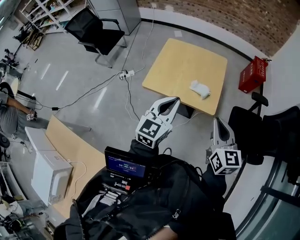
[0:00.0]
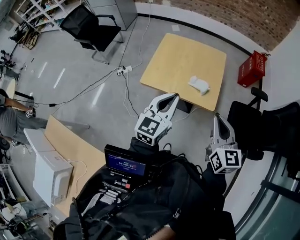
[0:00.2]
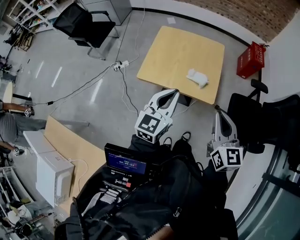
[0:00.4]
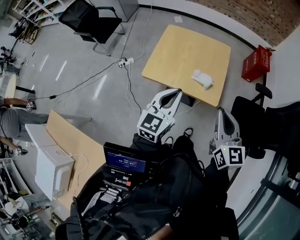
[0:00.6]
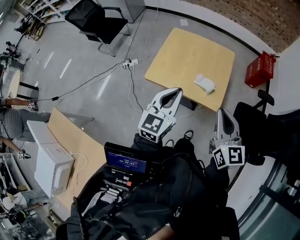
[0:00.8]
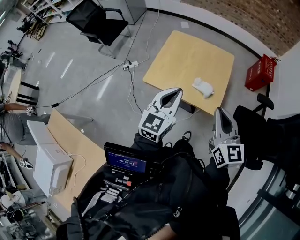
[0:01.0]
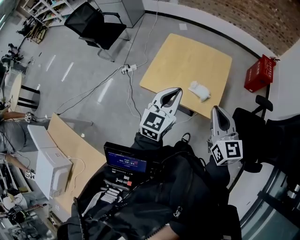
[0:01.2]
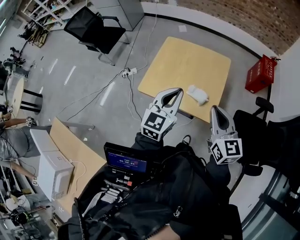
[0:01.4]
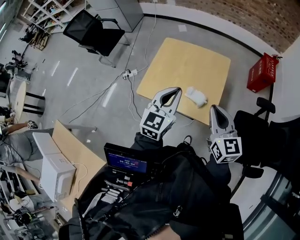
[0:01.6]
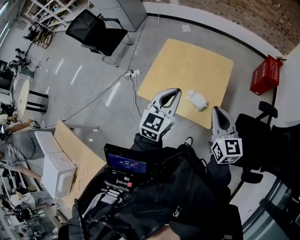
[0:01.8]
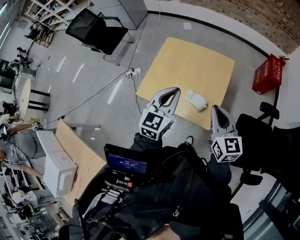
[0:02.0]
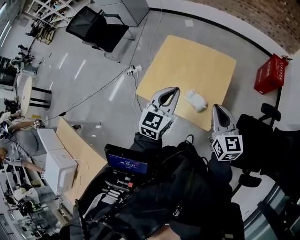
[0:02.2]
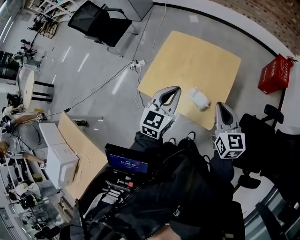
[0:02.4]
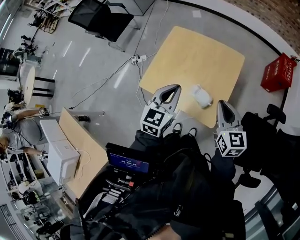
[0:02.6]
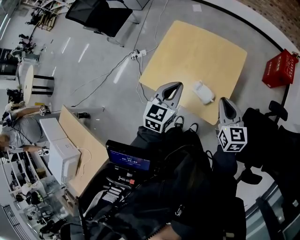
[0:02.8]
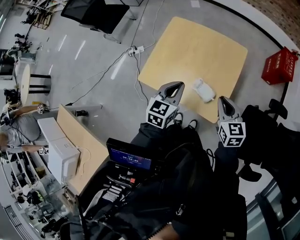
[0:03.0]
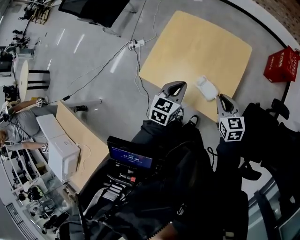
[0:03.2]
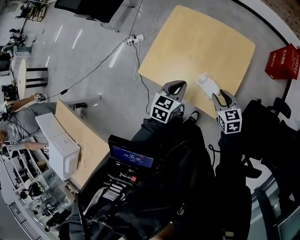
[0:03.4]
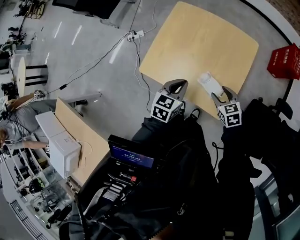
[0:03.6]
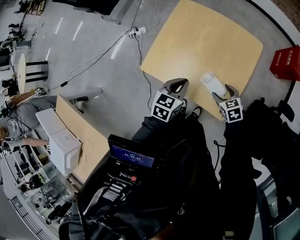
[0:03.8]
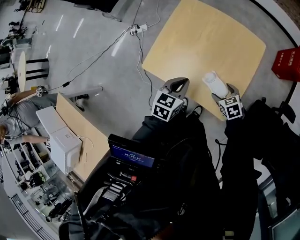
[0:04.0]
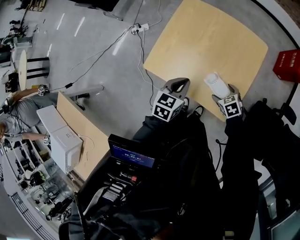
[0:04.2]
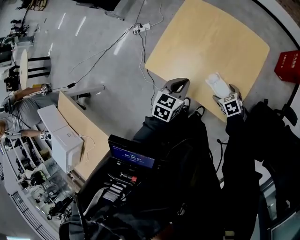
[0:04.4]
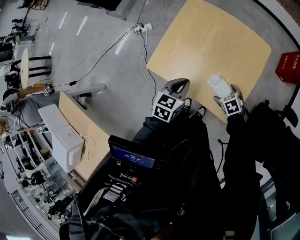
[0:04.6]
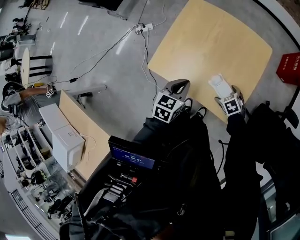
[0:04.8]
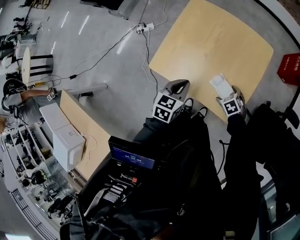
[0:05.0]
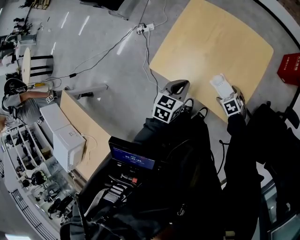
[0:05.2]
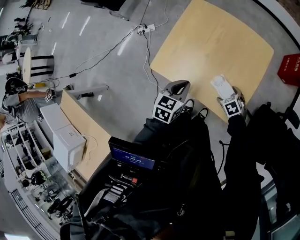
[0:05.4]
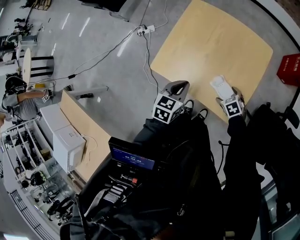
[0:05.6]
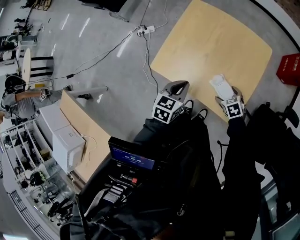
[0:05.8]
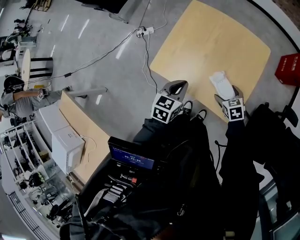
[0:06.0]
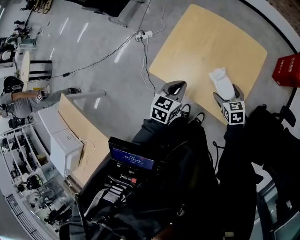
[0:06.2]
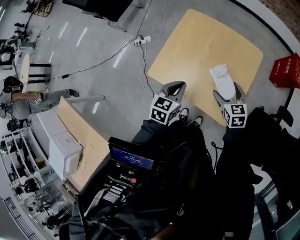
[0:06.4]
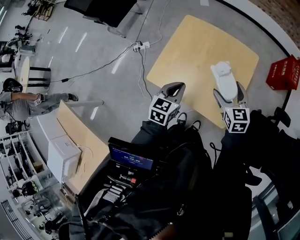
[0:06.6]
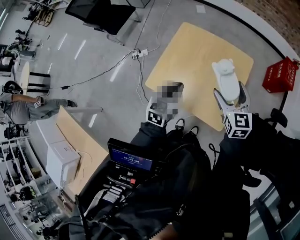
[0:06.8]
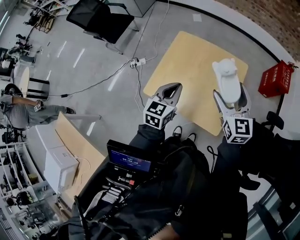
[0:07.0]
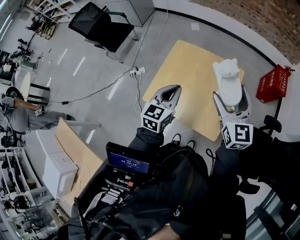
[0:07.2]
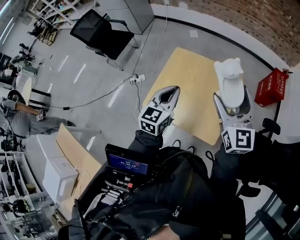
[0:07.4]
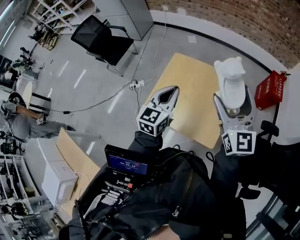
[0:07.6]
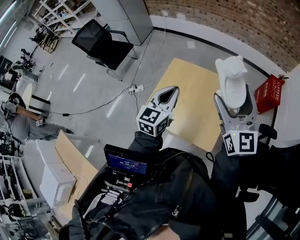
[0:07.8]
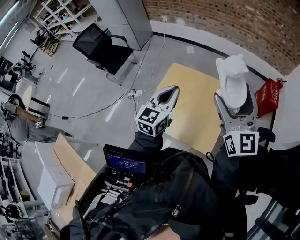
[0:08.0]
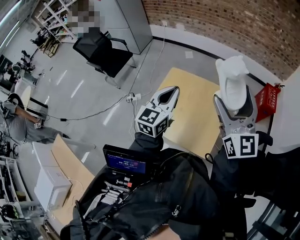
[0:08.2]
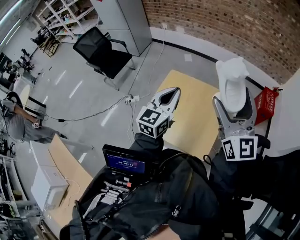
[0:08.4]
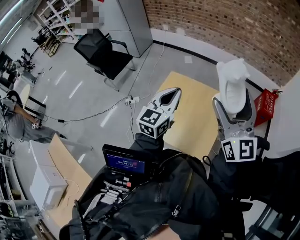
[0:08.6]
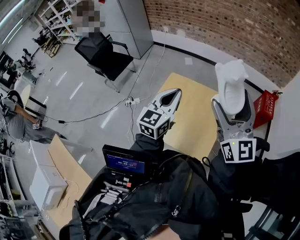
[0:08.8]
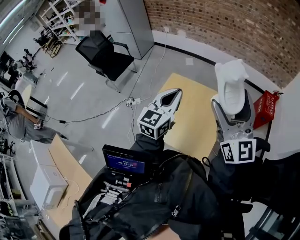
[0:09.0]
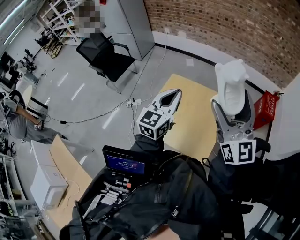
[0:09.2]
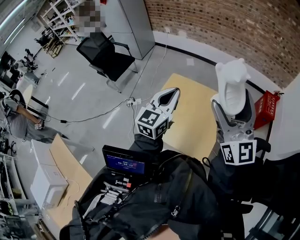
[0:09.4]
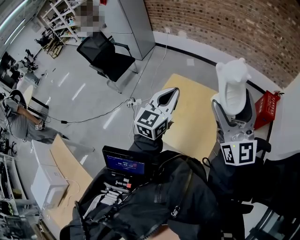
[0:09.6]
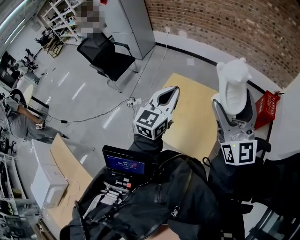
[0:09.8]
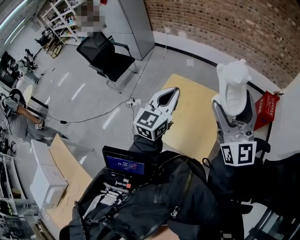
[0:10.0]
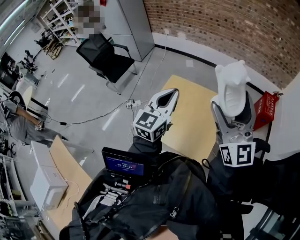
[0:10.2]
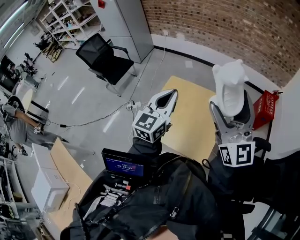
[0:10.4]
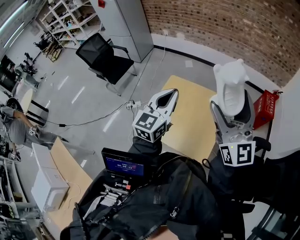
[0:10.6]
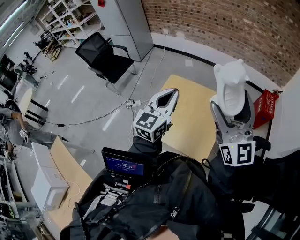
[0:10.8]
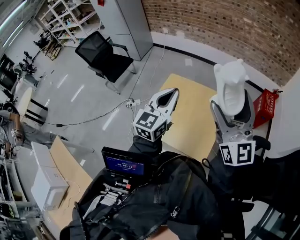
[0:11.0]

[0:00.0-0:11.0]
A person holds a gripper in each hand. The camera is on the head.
0.0 to 1.6 s: The left gripper heads forward and to the right, covering about 15 cm. The right gripper travels forward by approximately 15 cm.
1.6 to 3.2 s: Both grippers move downward and forward, approximately 20 cm. The right gripper turns by about 30 degrees. The left gripper changes its angle by some 20 degrees.
3.2 to 4.8 s: The right gripper heads downward, covering approximately 20 cm, tilts its fingers about 40 degrees downward, and opens its fingers. Meanwhile the left gripper heads downward and to the left, covering approximately 10 cm.
4.8 to 6.2 s: The right gripper is displaced upward by roughly 10 cm, and swivels roughly 30 degrees.
6.2 to 7.8 s: The left gripper is displaced upward by approximately 25 cm, and changes its angle by approximately 30 degrees. The right gripper heads upward, covering about 40 cm, and points its fingers roughly 60 degrees further upward.
7.8 to 9.4 s: Both grippers move upward, approximately 5 cm.
9.4 to 11.0 s: The grippers make only small movements.

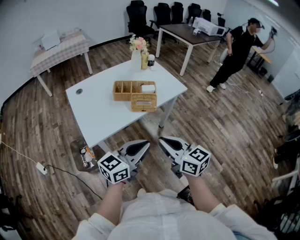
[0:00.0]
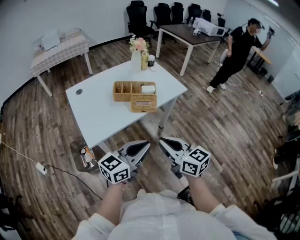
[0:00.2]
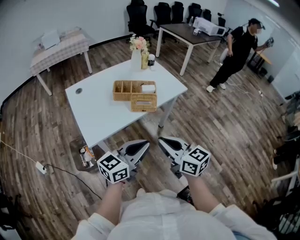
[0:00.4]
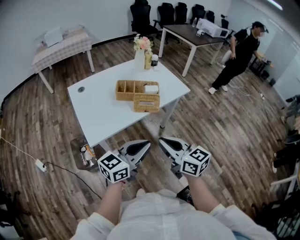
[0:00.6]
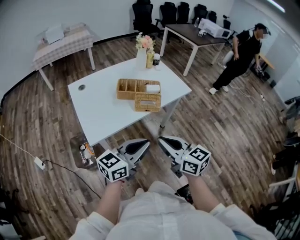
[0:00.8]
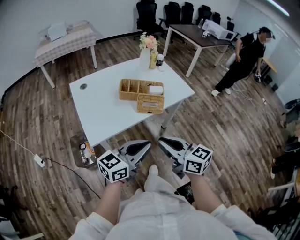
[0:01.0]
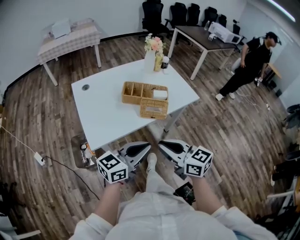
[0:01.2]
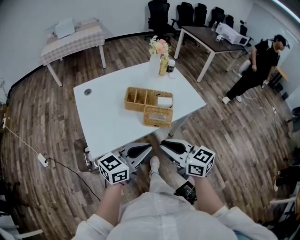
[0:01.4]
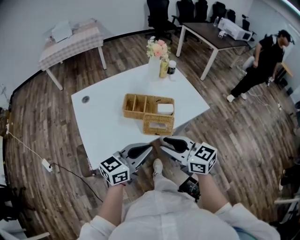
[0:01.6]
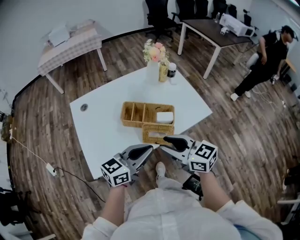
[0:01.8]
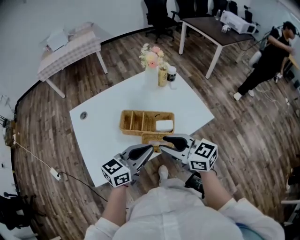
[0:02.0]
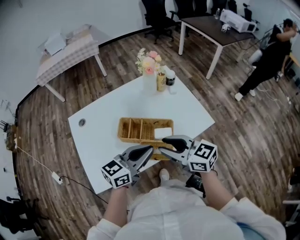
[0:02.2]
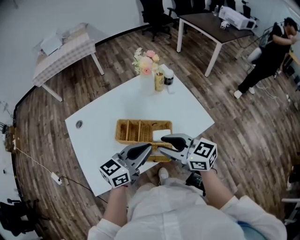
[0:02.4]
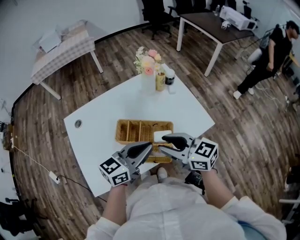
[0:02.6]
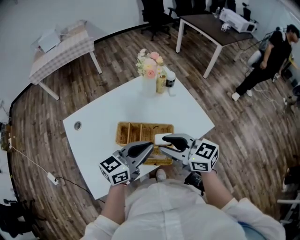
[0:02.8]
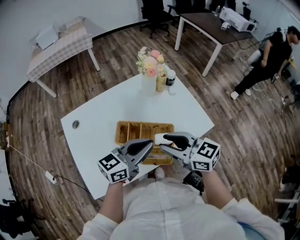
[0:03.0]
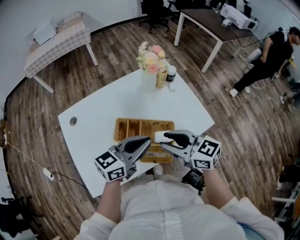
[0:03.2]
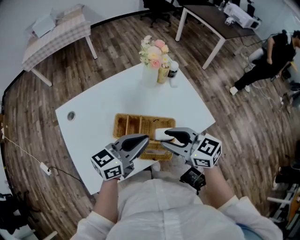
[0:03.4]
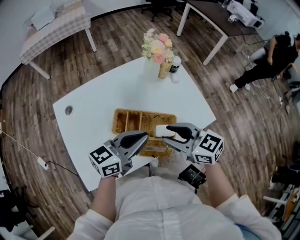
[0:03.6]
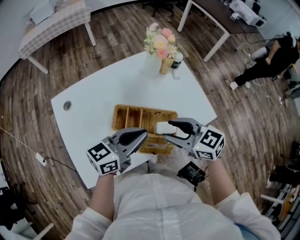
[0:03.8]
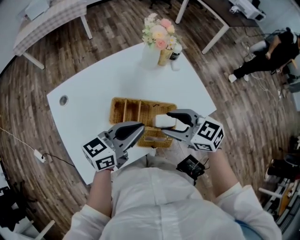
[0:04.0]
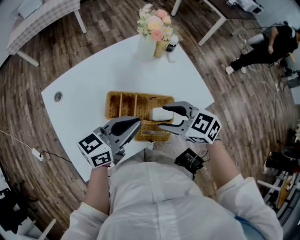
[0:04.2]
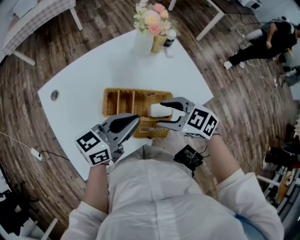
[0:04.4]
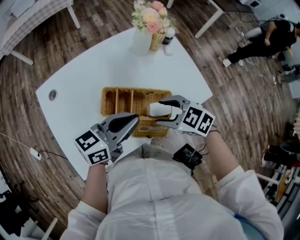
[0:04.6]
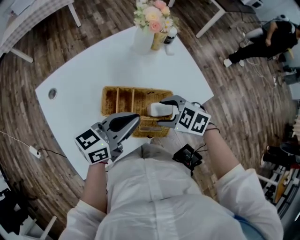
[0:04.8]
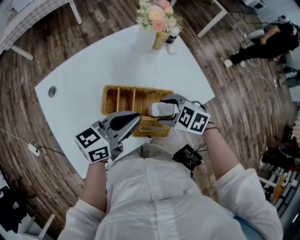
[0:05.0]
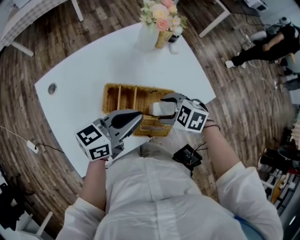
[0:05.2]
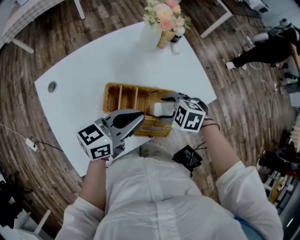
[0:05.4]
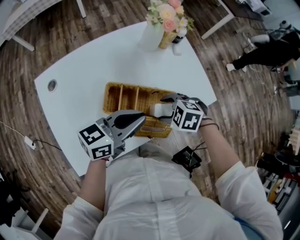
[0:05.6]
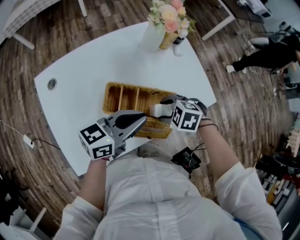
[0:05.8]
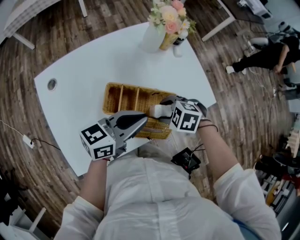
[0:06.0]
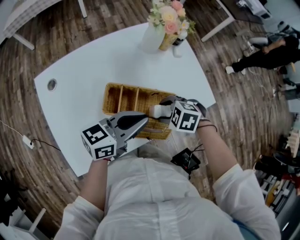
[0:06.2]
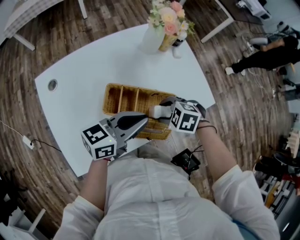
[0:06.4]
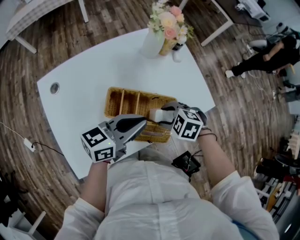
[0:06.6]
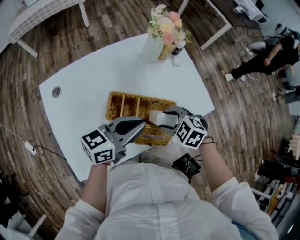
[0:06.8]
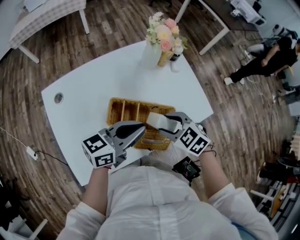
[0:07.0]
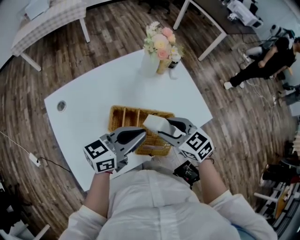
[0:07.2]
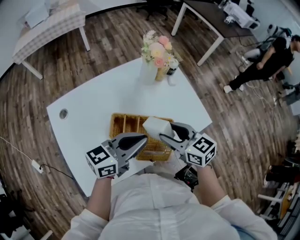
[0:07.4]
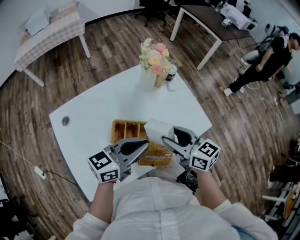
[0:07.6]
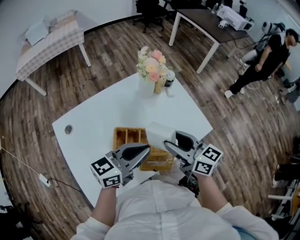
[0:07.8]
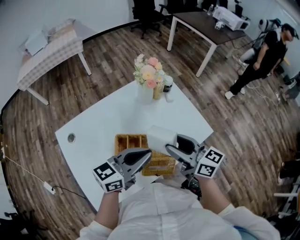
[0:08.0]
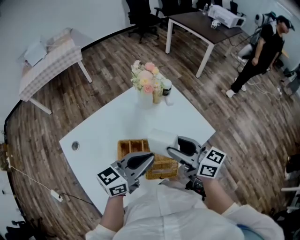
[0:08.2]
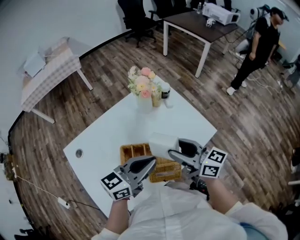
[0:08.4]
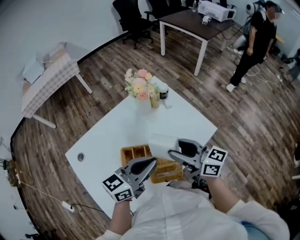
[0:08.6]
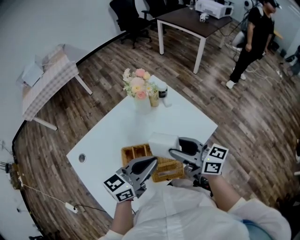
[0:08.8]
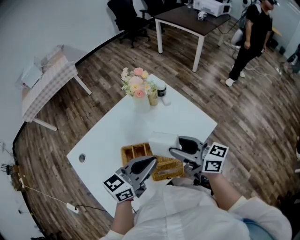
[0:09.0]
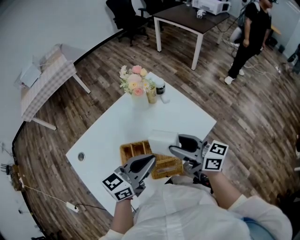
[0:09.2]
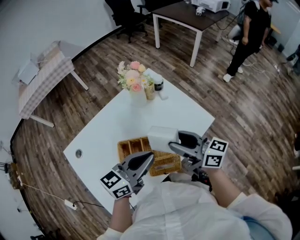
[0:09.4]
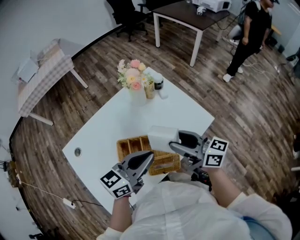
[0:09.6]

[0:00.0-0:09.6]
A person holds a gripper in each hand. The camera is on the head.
0.0 to 1.6 s: The two grippers go some 15 cm forward. The right gripper changes its angle by some 20 degrees, and opens its fingers.
1.6 to 3.2 s: Both grippers travel together forward, approximately 20 cm.
3.2 to 4.8 s: The right gripper heads downward, covering about 15 cm, tilts its fingers approximately 40 degrees downward, and opens; the left gripper moves approximately 5 cm.
4.8 to 6.4 s: The right gripper moves approximately 5 cm.
6.4 to 8.0 s: The left gripper shifts some 5 cm upward. The right gripper is displaced upward by roughly 20 cm, and points its fingers about 70 degrees further upward.
8.0 to 9.6 s: The grippers stay close to where they were, moving slightly.

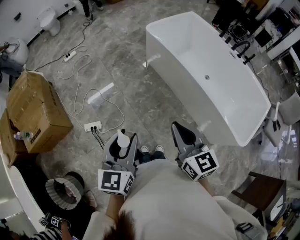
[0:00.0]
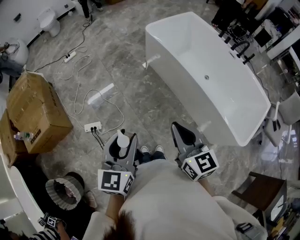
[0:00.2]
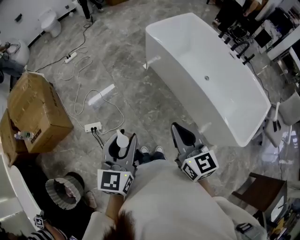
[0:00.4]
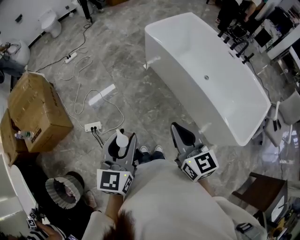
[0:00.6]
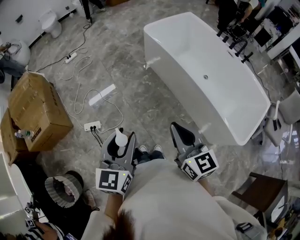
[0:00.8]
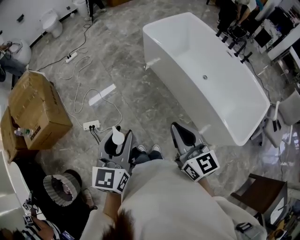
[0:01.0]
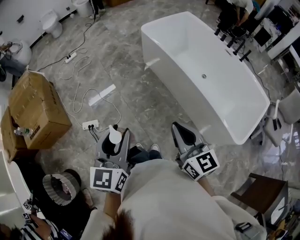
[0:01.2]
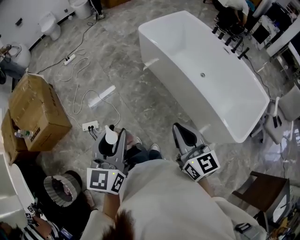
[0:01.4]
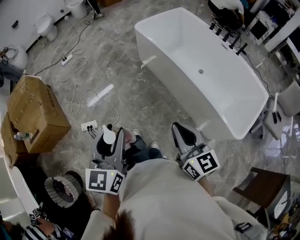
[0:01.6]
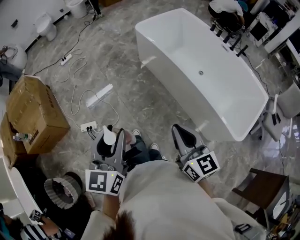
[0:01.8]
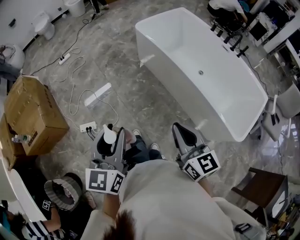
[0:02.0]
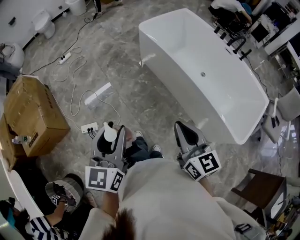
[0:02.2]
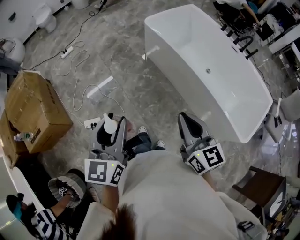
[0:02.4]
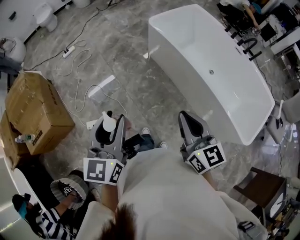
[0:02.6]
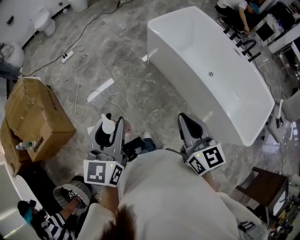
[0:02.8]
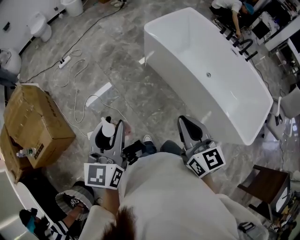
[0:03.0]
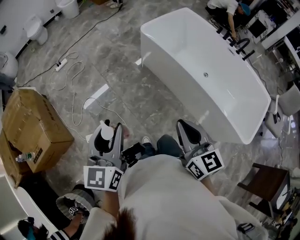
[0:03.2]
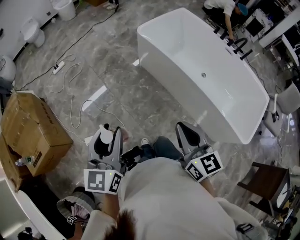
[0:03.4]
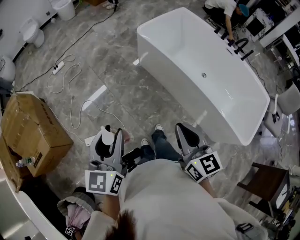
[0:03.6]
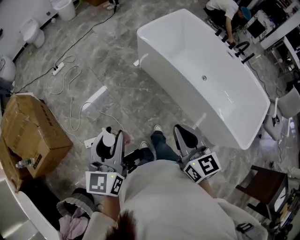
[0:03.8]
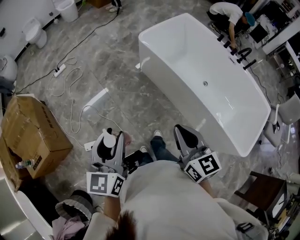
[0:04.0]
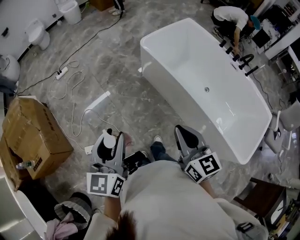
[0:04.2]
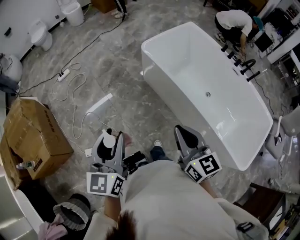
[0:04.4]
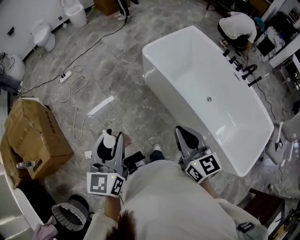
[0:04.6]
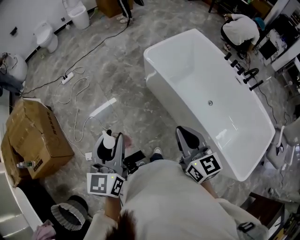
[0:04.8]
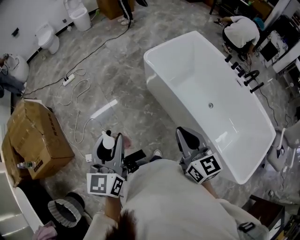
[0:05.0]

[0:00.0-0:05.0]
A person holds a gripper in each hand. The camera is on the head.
0.0 to 1.6 s: The right gripper heads to the right and backward, covering about 10 cm. The left gripper moves to the right, roughly 5 cm.
1.6 to 3.4 s: Both grippers move forward and to the left, roughly 20 cm.
3.4 to 5.0 s: Both grippers travel together forward and to the right, about 20 cm.
